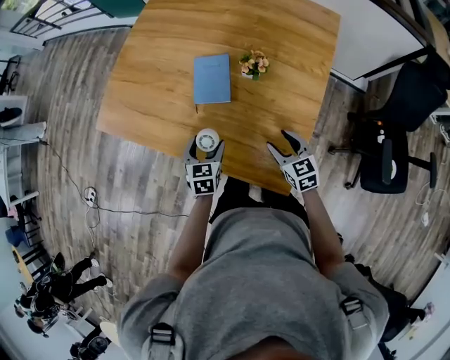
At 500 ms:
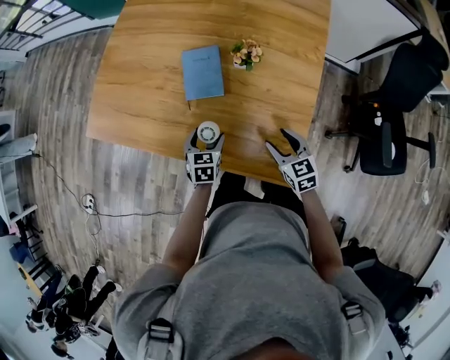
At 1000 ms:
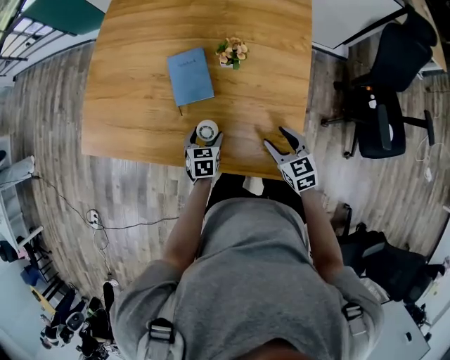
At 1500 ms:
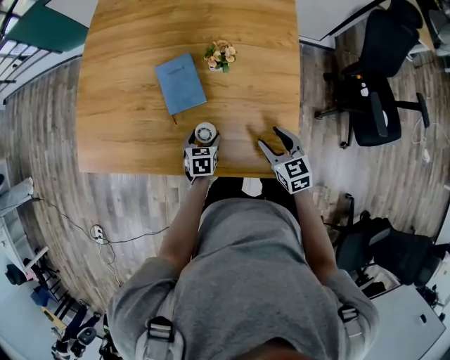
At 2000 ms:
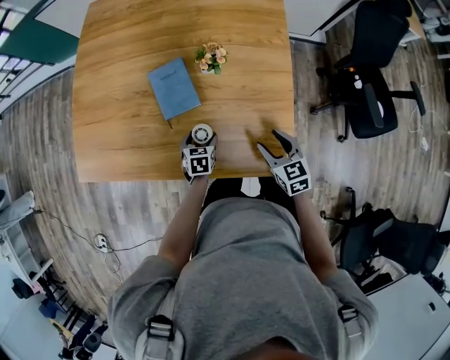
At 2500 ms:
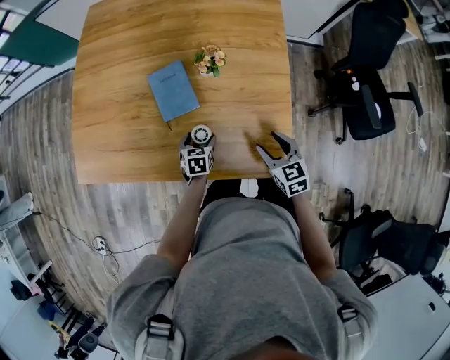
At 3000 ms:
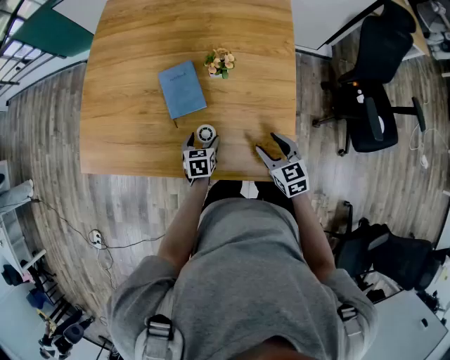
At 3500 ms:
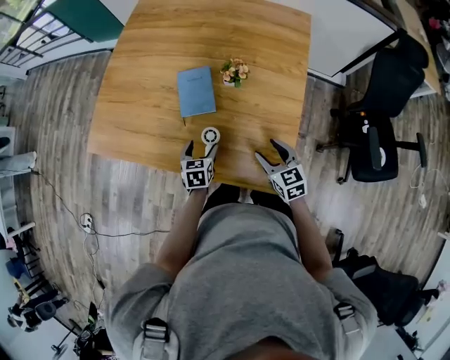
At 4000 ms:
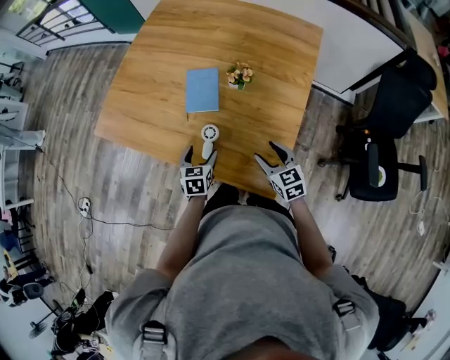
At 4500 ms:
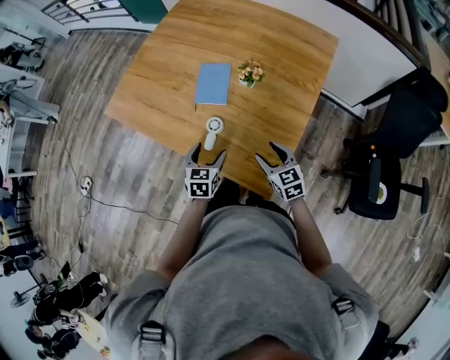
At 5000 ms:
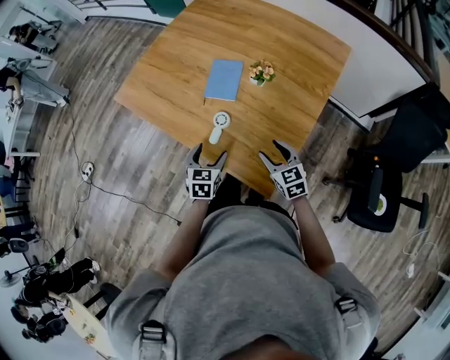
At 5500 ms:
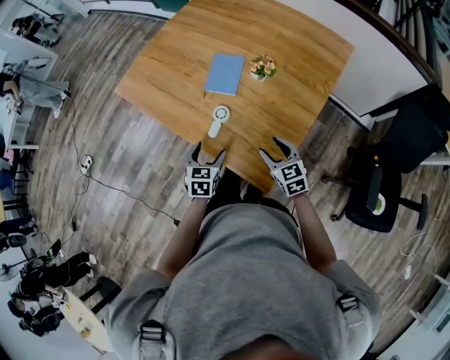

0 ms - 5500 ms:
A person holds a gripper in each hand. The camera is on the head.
0 ms - 2000 ms: The left gripper moves downward, approximately 15 cm, and turns by about 20 degrees. Meanwhile the right gripper swivels approximately 20 degrees.
2000 ms - 3500 ms: The left gripper heads upward, covering some 10 cm.
3500 ms - 5500 ms: The left gripper travels backward and upward by some 15 cm, while the right gripper changes its angle by roughly 20 degrees.

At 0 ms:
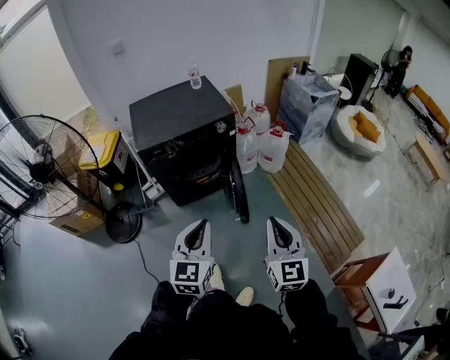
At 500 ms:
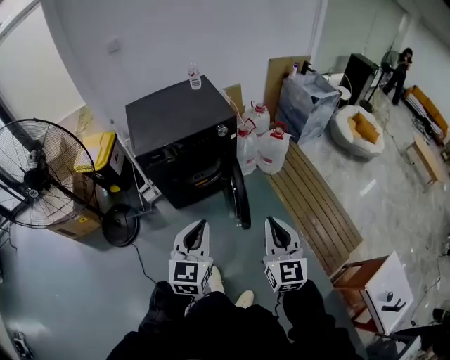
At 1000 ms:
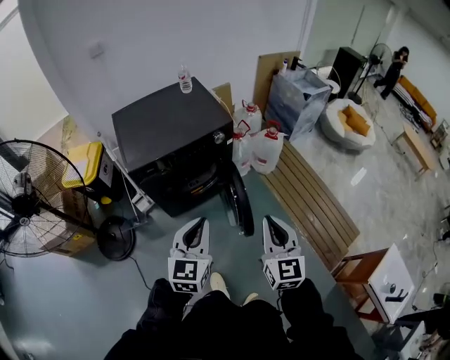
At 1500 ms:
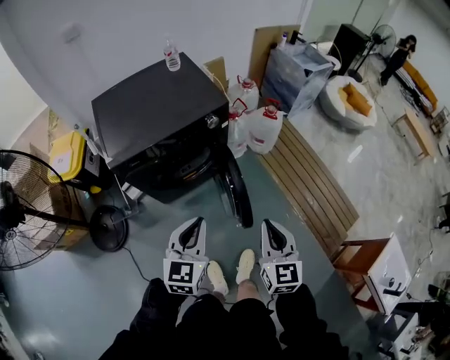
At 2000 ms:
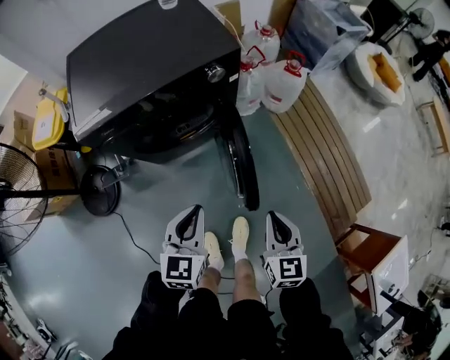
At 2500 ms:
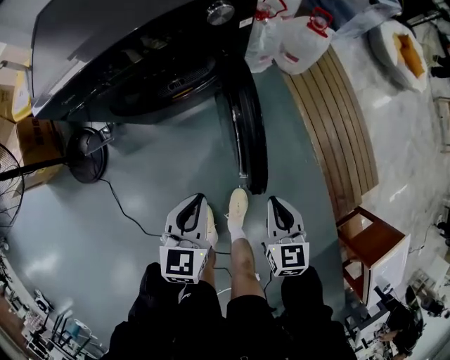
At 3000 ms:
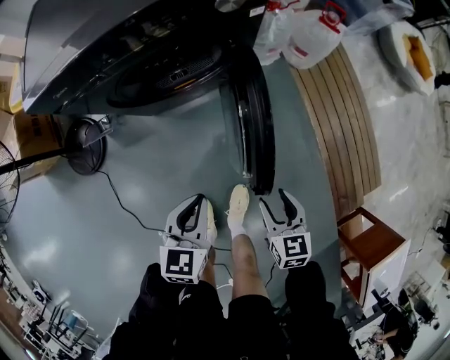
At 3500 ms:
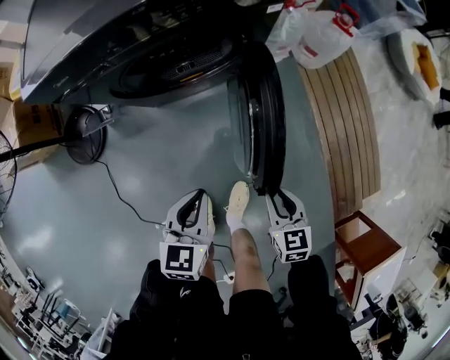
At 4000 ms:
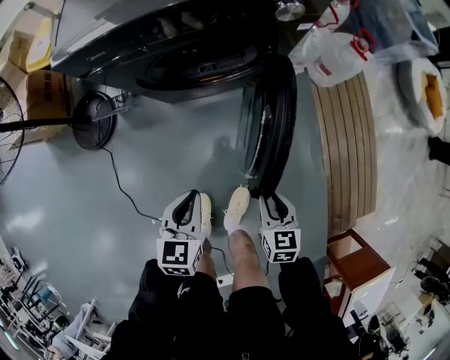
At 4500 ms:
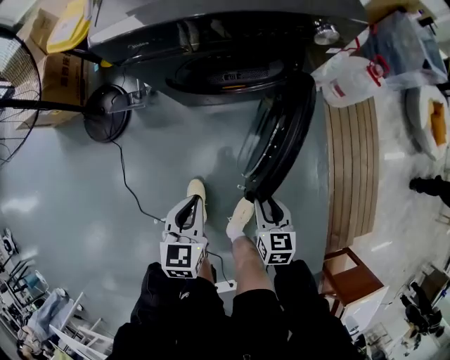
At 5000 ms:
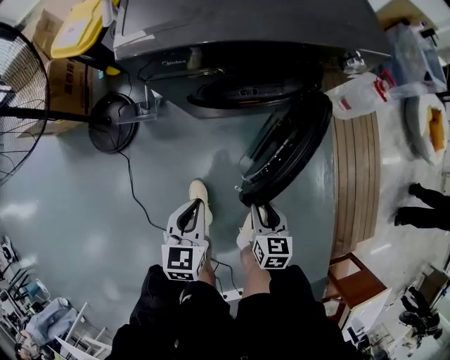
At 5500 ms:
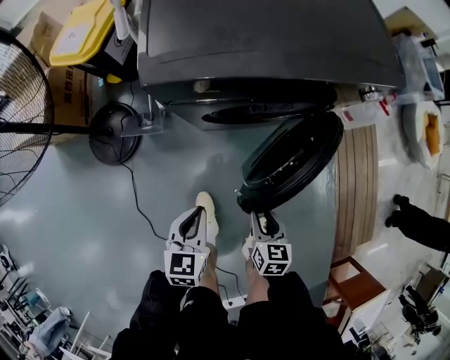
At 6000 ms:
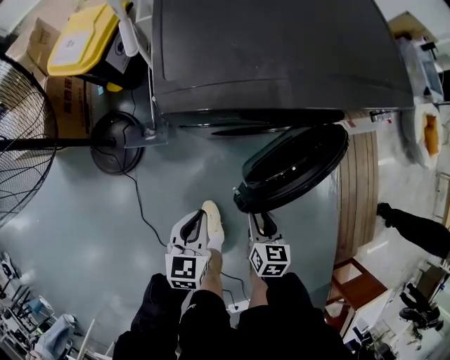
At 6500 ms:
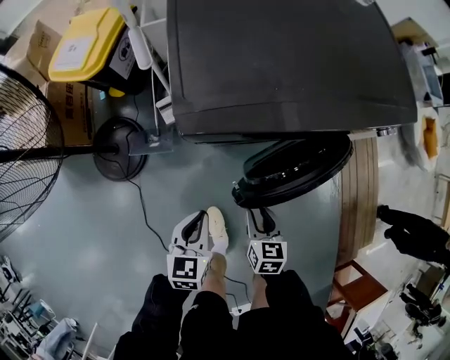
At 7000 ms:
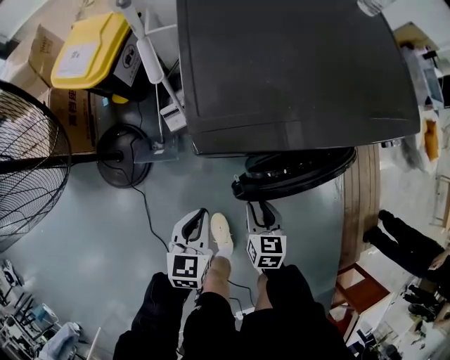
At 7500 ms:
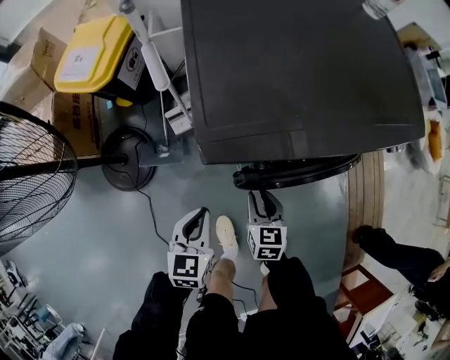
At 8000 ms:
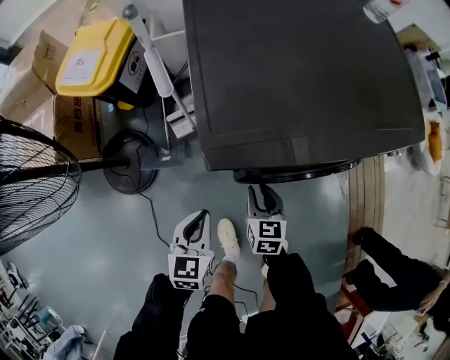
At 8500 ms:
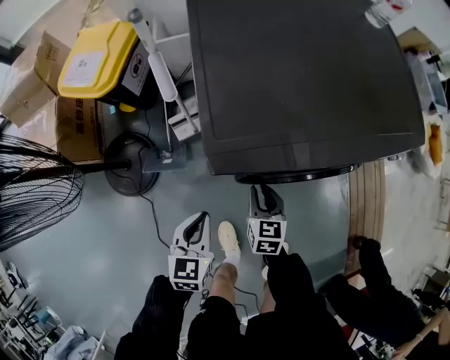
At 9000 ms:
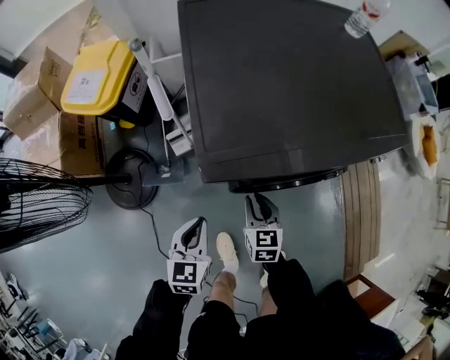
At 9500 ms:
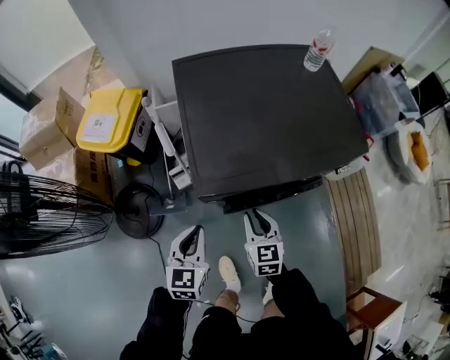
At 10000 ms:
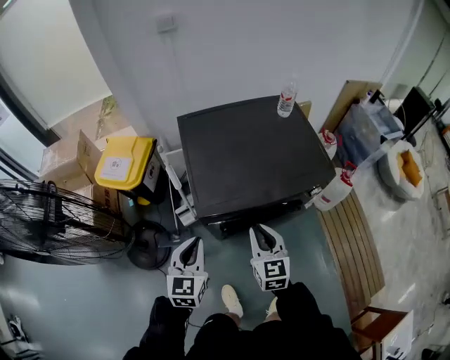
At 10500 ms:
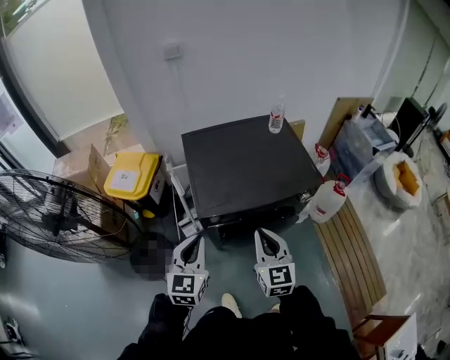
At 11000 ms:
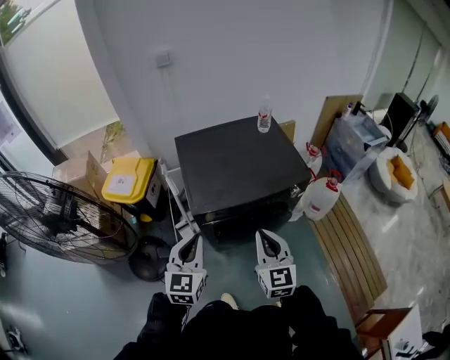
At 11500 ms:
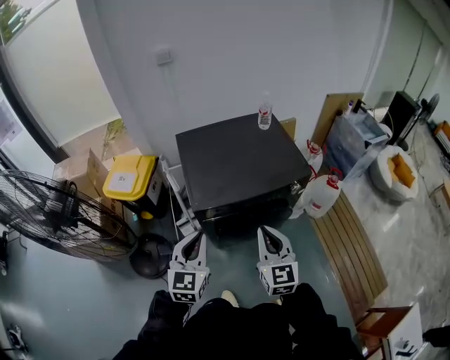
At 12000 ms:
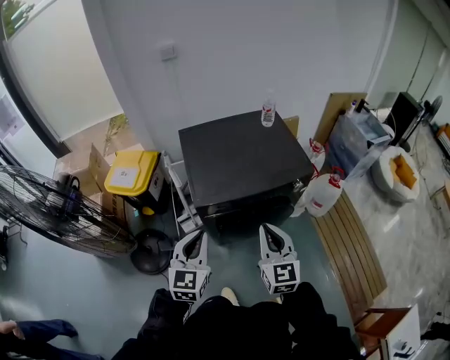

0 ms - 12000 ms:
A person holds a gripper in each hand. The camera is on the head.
0 ms - 2000 ms: The right gripper shifts about 40 cm downward and forward, and turns by roughly 30 degrees, while the left gripper travels forward and downward by approximately 40 cm.
2000 ms - 4000 ms: Both grippers move downward, about 25 cm. The left gripper turns by about 20 degrees; the right gripper swivels some 30 degrees, and opens.
4000 ms - 6000 ms: Both grippers move to the left and forward, some 30 cm.
6000 ms - 8000 ms: The left gripper travels forward and to the left by some 15 cm. The right gripper is displaced forward and to the left by about 20 cm.
8000 ms - 10000 ms: Both grippers move upward, about 35 cm. The left gripper swivels approximately 20 degrees. Meanwhile the right gripper swivels approximately 20 degrees.
10000 ms - 12000 ms: Both grippers move upward, backward and to the right, roughly 20 cm.

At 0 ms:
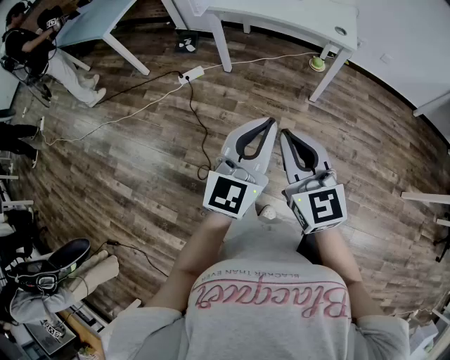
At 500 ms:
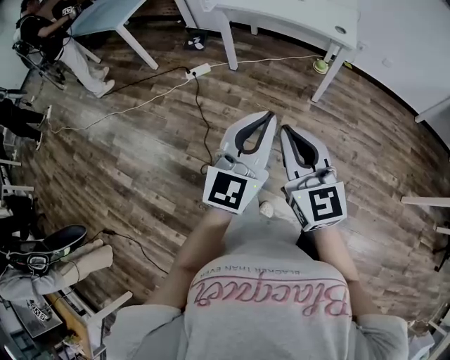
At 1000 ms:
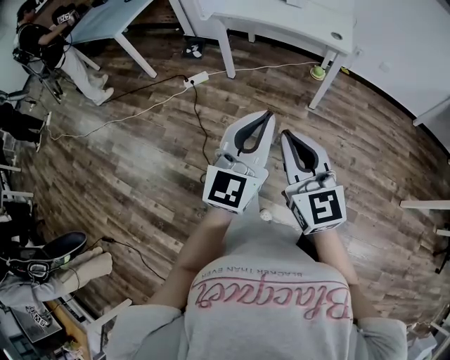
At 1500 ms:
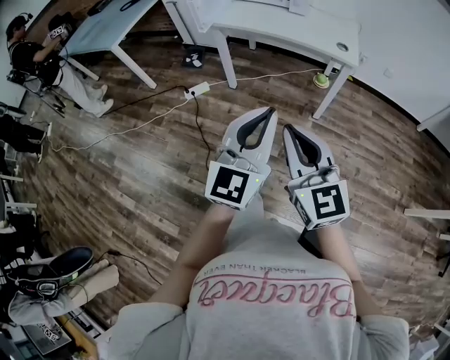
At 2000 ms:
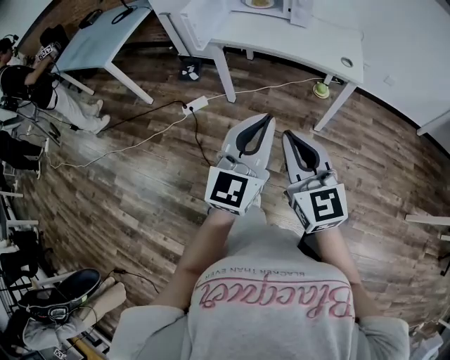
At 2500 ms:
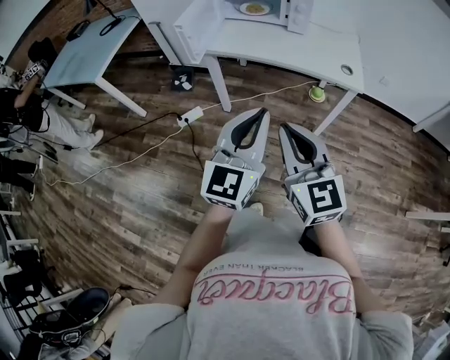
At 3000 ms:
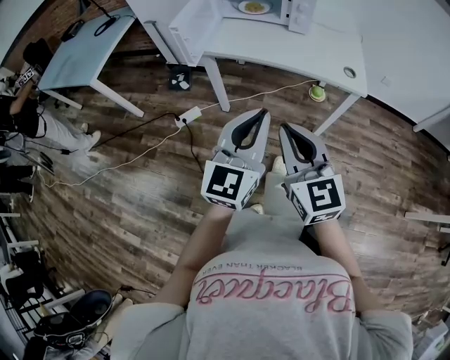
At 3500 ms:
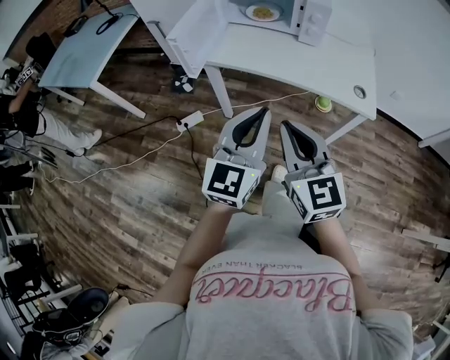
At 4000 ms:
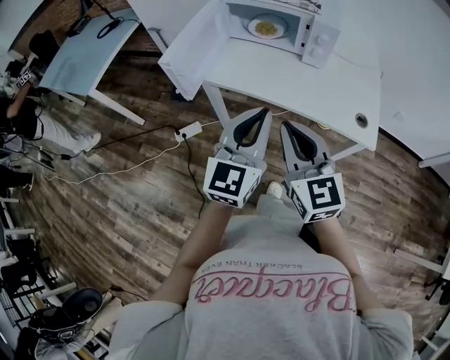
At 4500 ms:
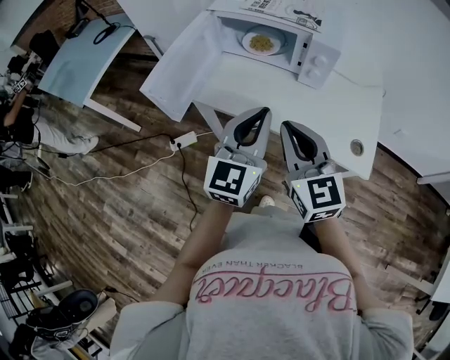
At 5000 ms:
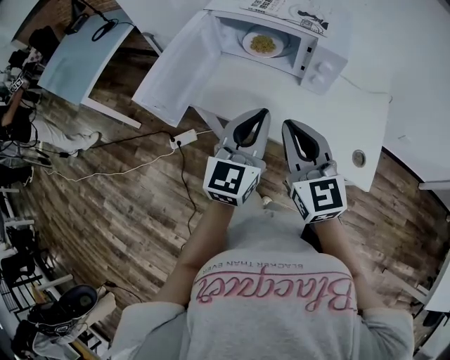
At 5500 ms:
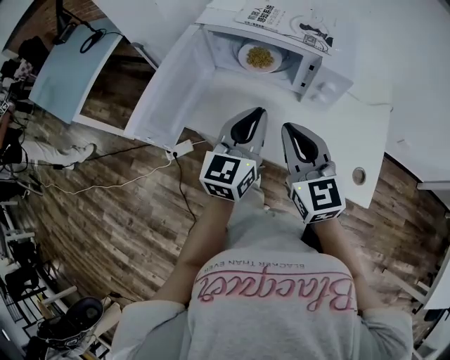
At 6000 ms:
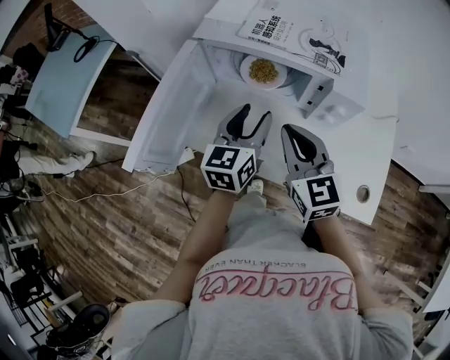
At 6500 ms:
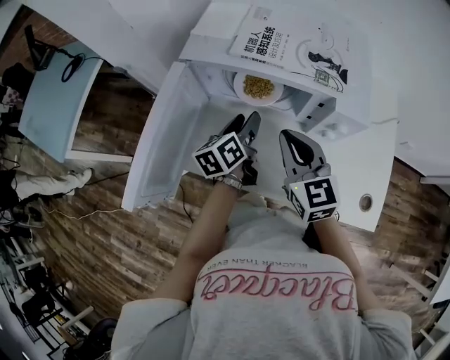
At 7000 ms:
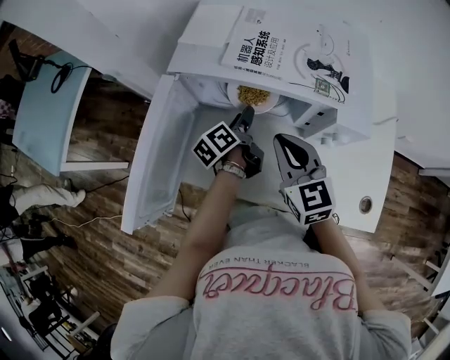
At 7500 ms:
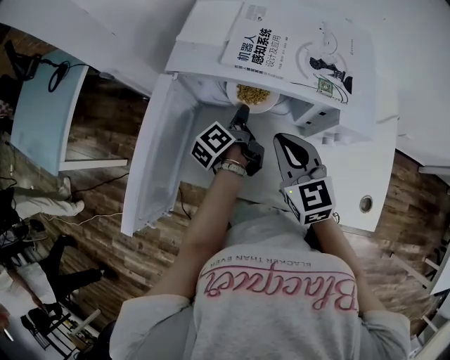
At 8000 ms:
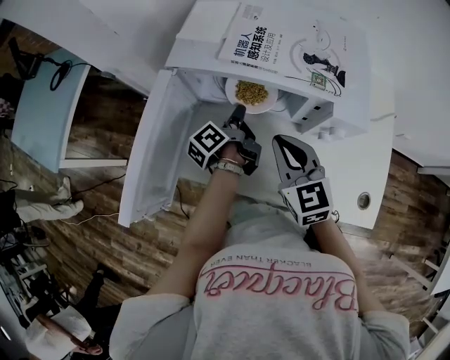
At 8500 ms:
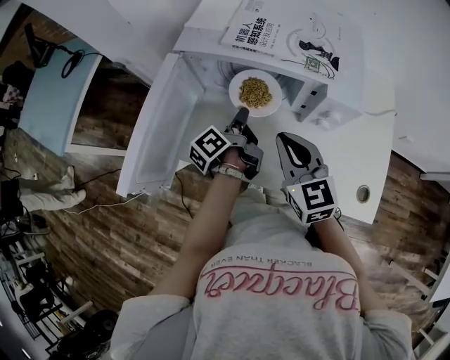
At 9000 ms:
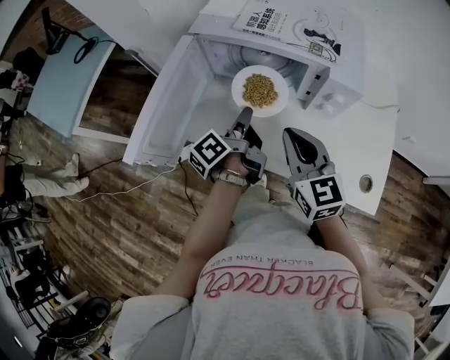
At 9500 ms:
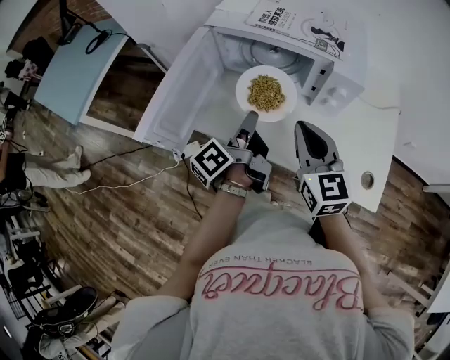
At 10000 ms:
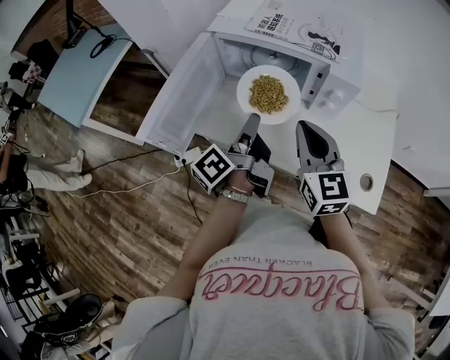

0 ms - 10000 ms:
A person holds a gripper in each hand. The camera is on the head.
0 ms - 2000 ms: The two grippers go approximately 15 cm forward.
2000 ms - 4000 ms: The grippers both shift forward by approximately 35 cm.
4000 ms - 6000 ms: The grippers both shift forward by some 30 cm. The left gripper swivels approximately 20 degrees, and opens its fingers.
6000 ms - 8000 ms: The left gripper goes about 15 cm forward and downward, twists roughly 70 degrees counterclockwise, seen from behind, and closes its fingers. The right gripper goes approximately 5 cm forward.
8000 ms - 10000 ms: The left gripper moves backward and upward, about 25 cm. Meanwhile the right gripper is displaced backward and upward by about 15 cm.
